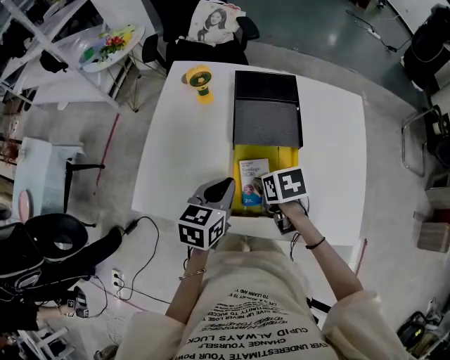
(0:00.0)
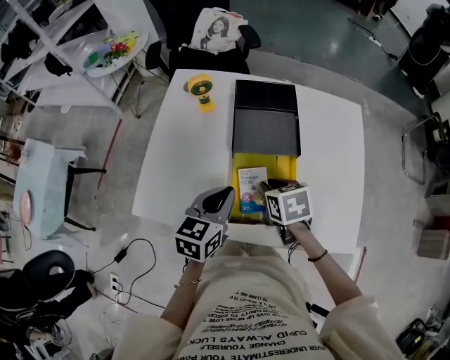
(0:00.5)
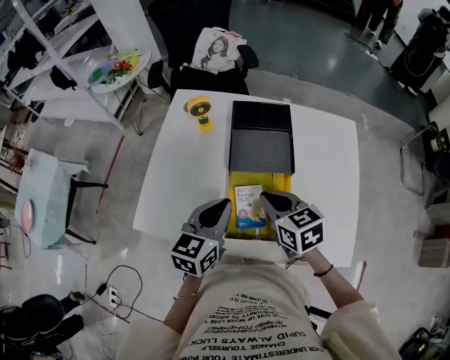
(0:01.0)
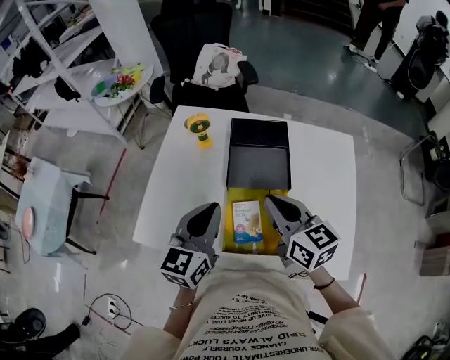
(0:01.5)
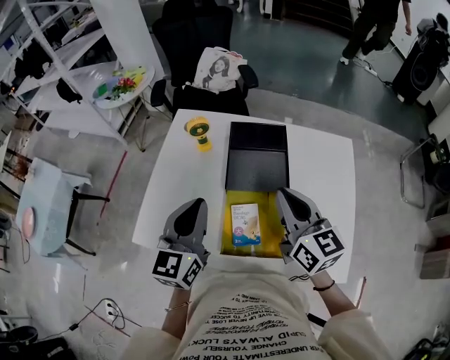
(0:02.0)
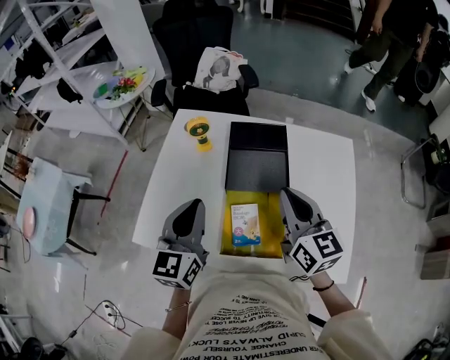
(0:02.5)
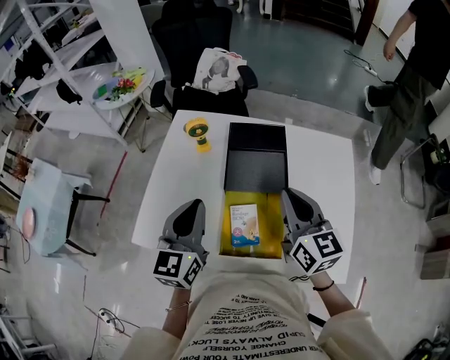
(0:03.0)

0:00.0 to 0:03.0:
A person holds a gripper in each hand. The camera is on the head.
0:00.0 to 0:01.5: The left gripper travels upward by about 10 cm, and swivels some 20 degrees; the right gripper travels upward by approximately 15 cm, angles its fingers upward, by roughly 50 degrees, and closes its fingers.
0:01.5 to 0:03.0: The right gripper ends up roughly 5 cm from where it was.

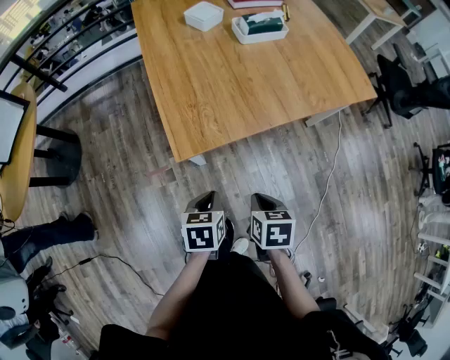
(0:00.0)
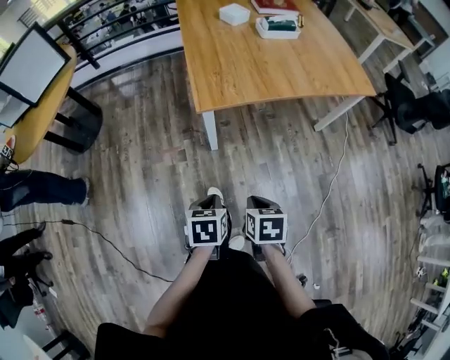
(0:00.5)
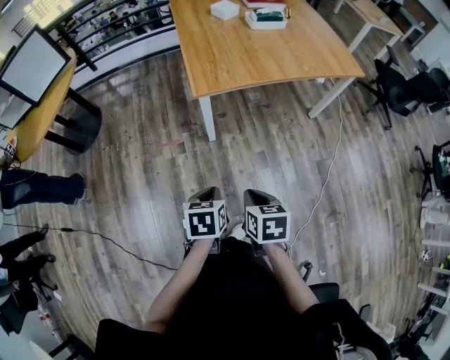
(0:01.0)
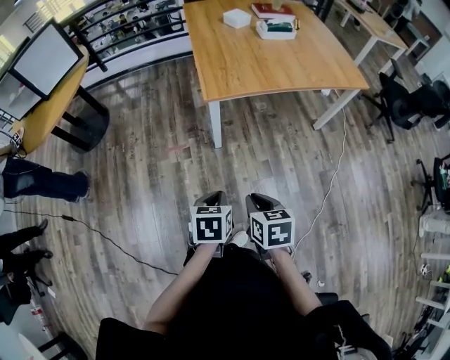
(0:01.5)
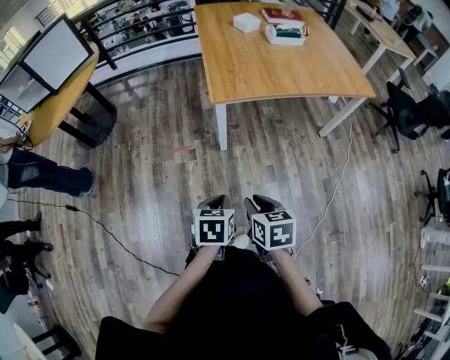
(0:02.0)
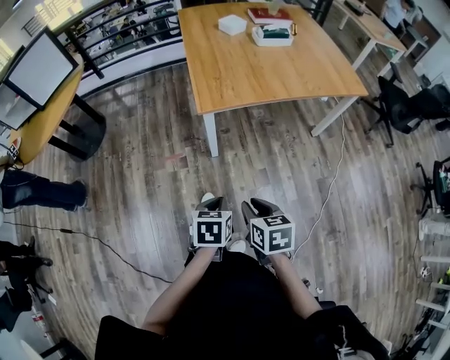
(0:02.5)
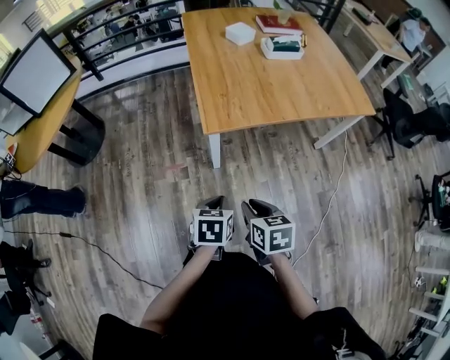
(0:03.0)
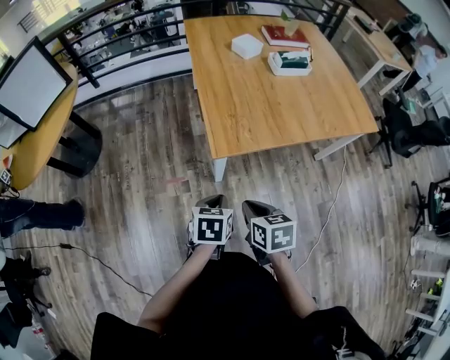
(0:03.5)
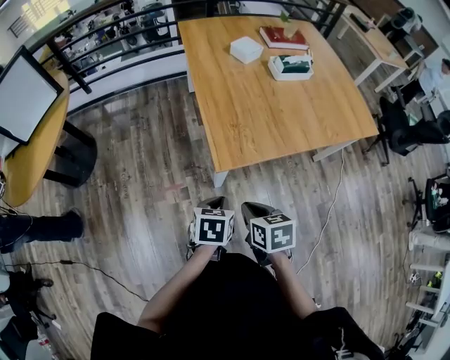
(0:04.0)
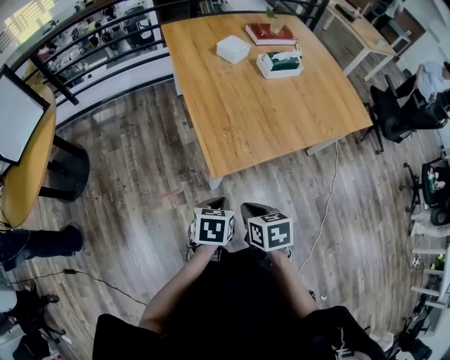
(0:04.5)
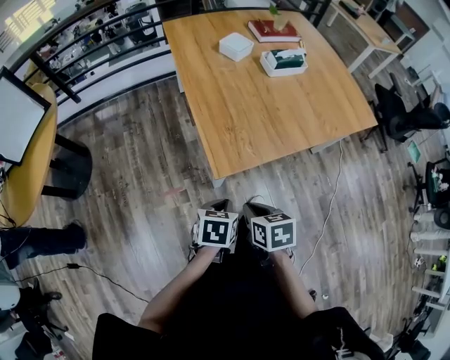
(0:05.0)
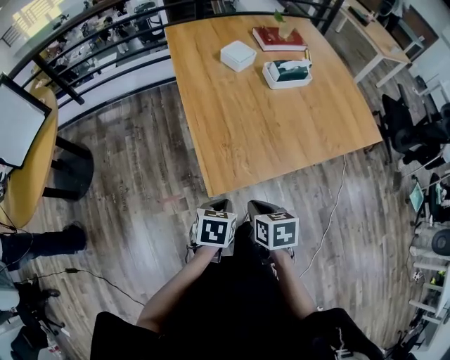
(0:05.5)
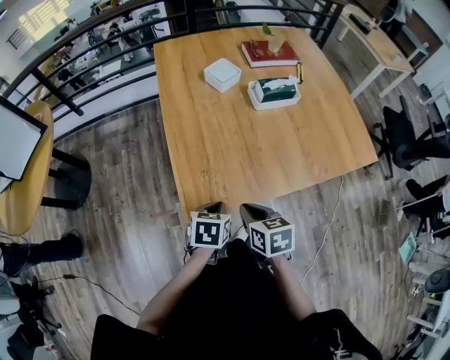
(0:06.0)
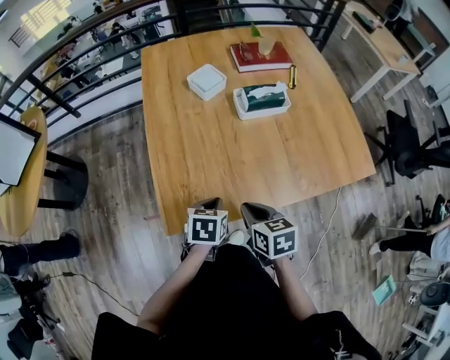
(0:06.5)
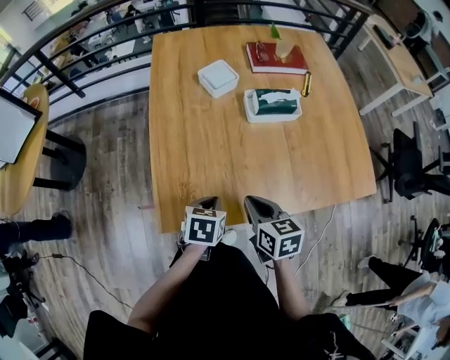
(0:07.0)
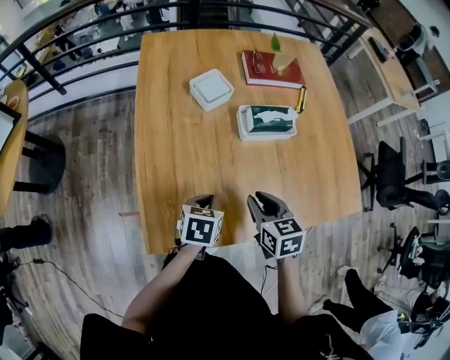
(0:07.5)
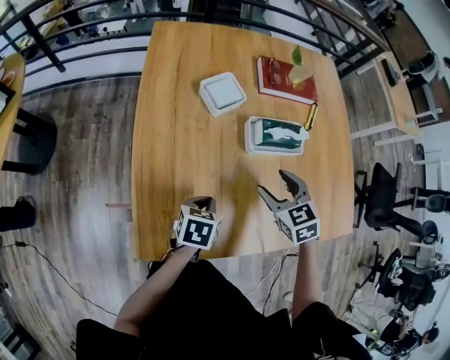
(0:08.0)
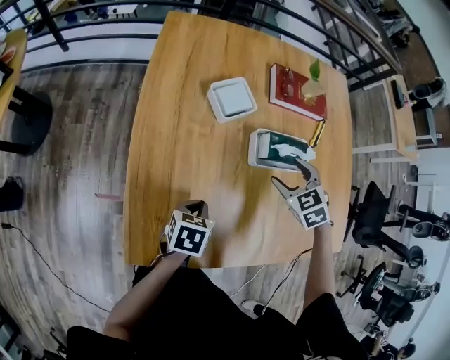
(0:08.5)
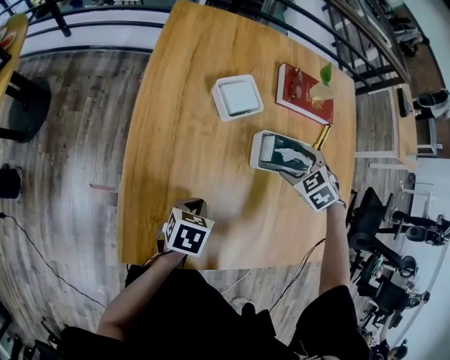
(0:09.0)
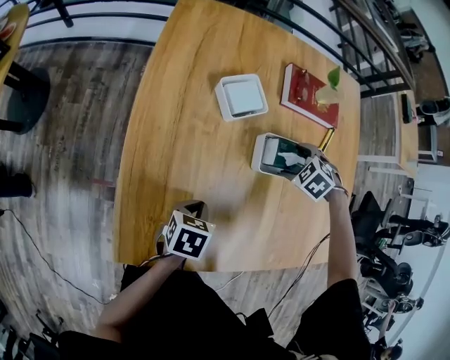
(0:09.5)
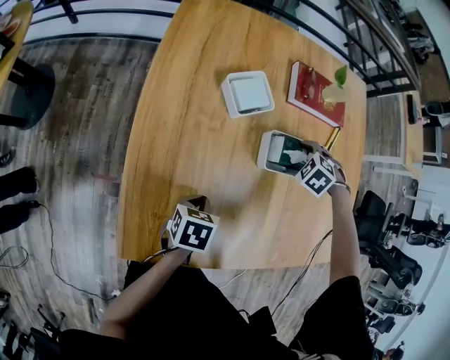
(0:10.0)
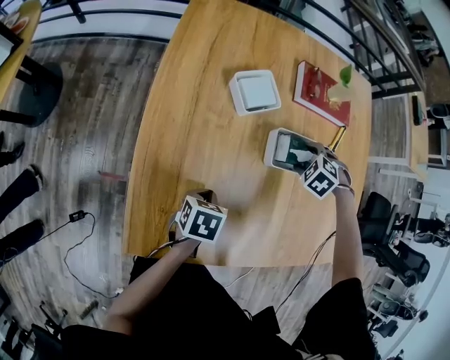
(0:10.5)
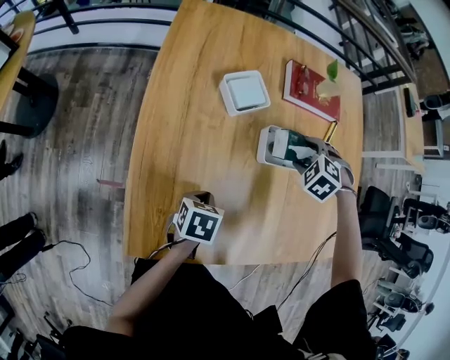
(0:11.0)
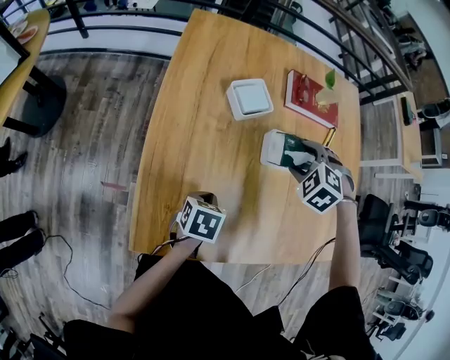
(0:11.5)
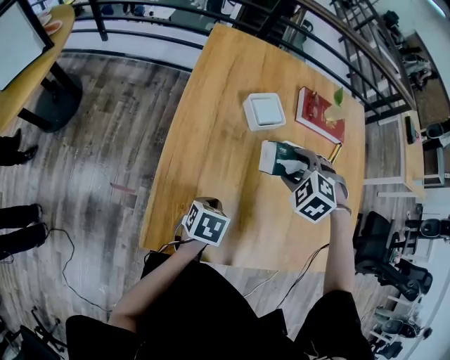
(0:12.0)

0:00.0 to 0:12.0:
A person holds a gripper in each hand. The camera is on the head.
0:00.0 to 0:02.0: The grippers both shift backward by about 30 cm. The right gripper swivels roughly 20 degrees.
0:02.0 to 0:04.0: The grippers both shift forward by about 30 cm.
0:04.0 to 0:06.0: Both grippers move forward and to the right, about 20 cm.
0:06.0 to 0:08.0: The right gripper travels forward and to the right by some 35 cm, twists approximately 40 degrees counterclockwise, seen from behind, and opens up. The left gripper heads forward, covering approximately 20 cm.
0:08.0 to 0:10.0: The left gripper moves some 5 cm. The right gripper moves some 20 cm, and points its fingers about 40 degrees further downward.
0:10.0 to 0:12.0: The left gripper ends up approximately 5 cm from where it was; the right gripper moves approximately 20 cm, and changes its angle by roughly 20 degrees.

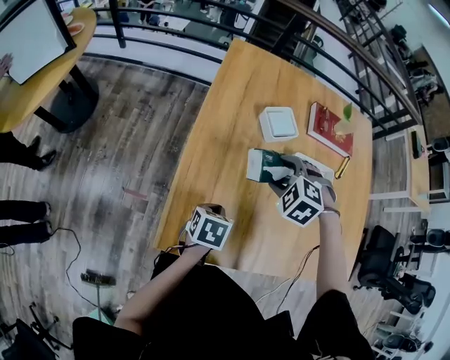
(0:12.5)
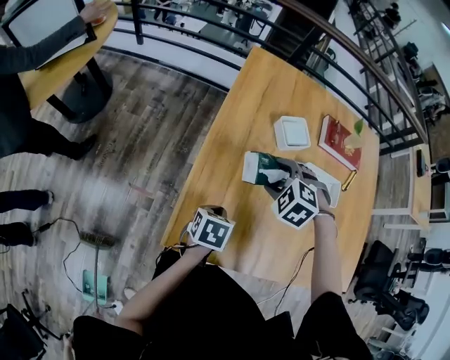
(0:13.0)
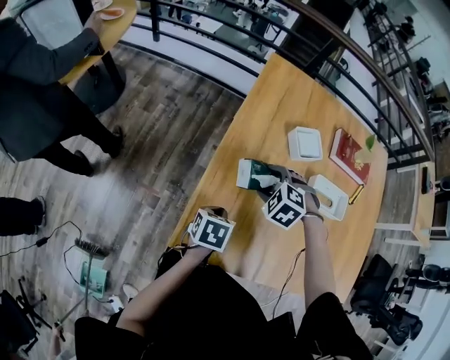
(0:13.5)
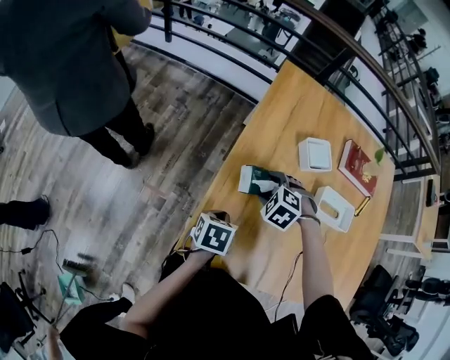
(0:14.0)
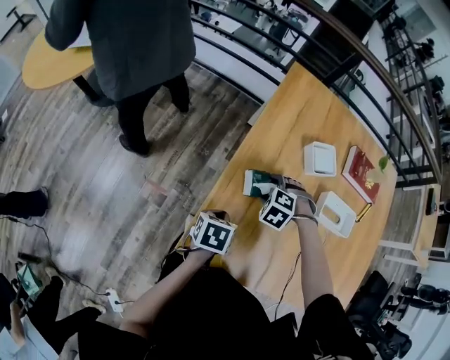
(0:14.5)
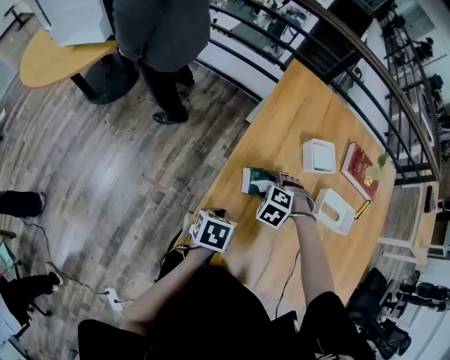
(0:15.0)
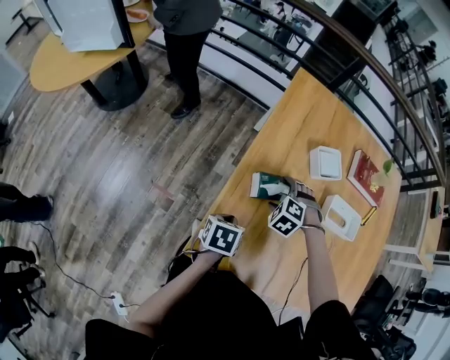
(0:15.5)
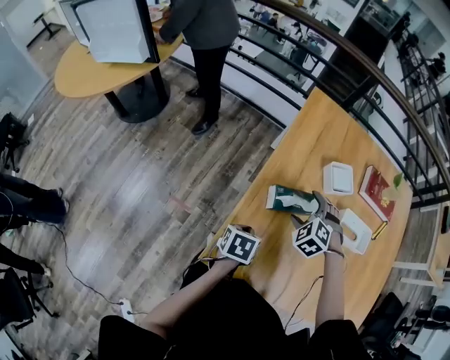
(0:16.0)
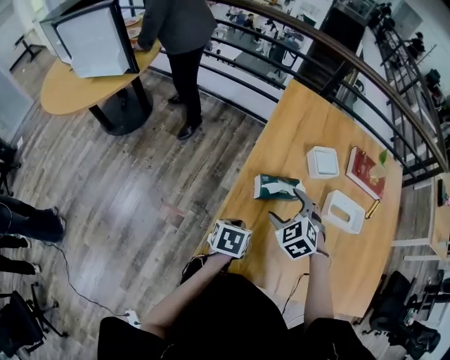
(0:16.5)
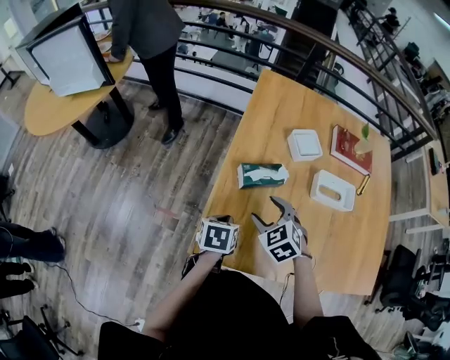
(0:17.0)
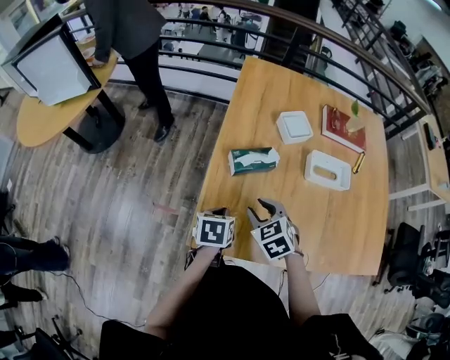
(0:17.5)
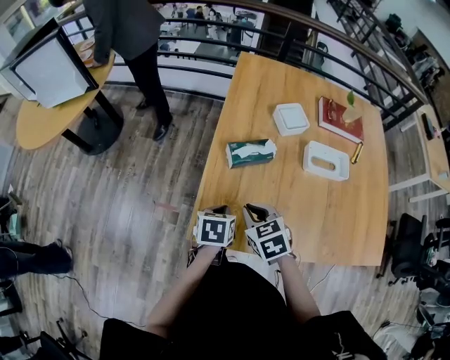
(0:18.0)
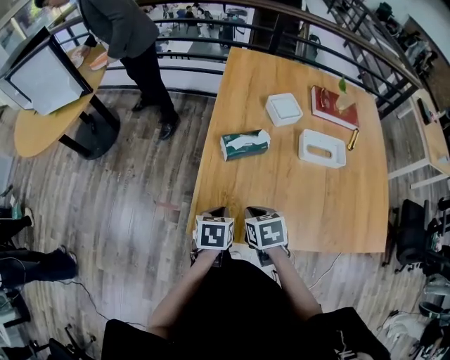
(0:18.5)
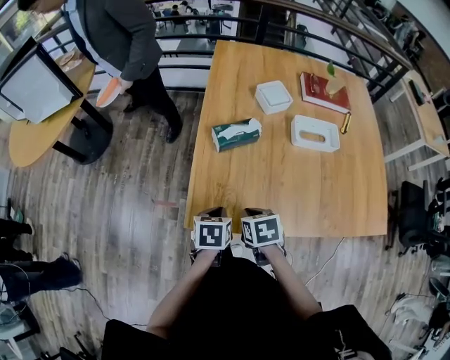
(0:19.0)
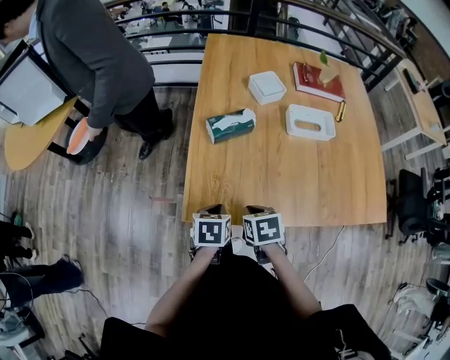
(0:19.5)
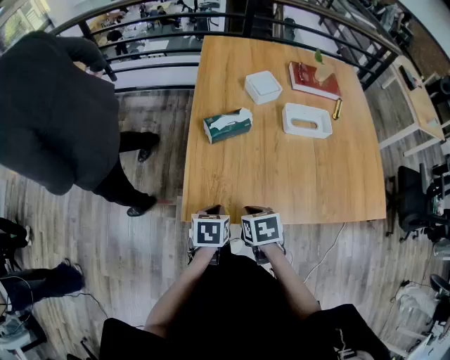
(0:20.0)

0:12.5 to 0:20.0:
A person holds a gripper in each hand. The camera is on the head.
0:12.5 to 0:14.5: The left gripper changes place by some 10 cm, while the right gripper shifts approximately 15 cm downward.
0:14.5 to 0:16.5: The right gripper travels upward by approximately 10 cm, and rotates approximately 40 degrees.
0:16.5 to 0:18.0: The right gripper moves backward, some 15 cm, changes its angle by approximately 40 degrees, and closes, while the left gripper shifts by approximately 5 cm.
0:18.0 to 0:20.0: The right gripper travels backward and downward by approximately 10 cm, and rotates some 30 degrees; the left gripper is displaced backward by about 10 cm.

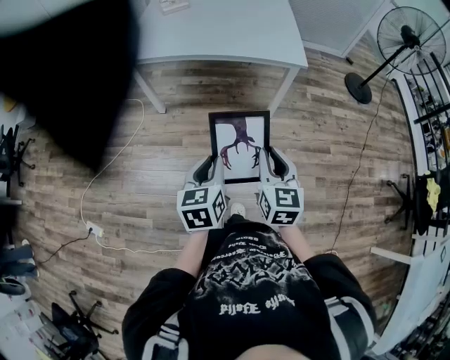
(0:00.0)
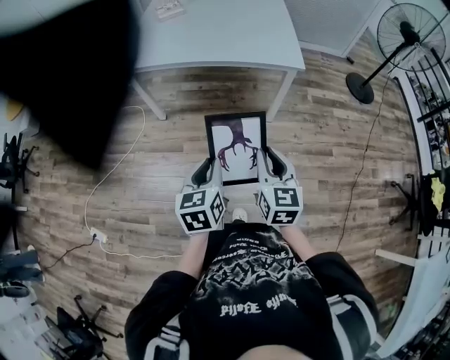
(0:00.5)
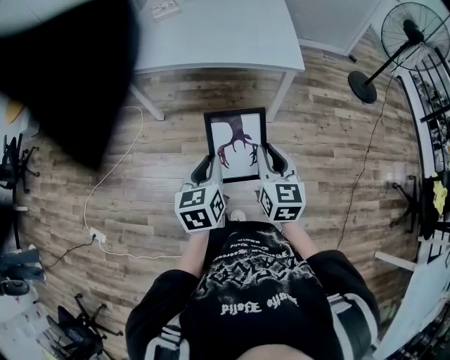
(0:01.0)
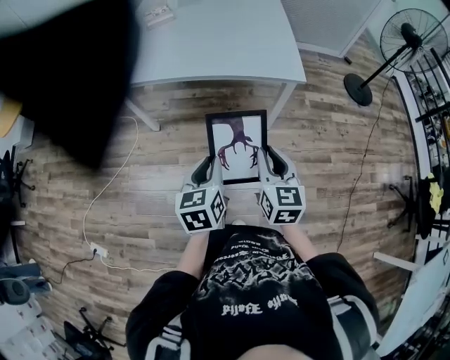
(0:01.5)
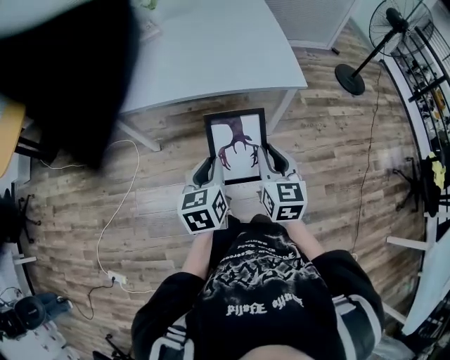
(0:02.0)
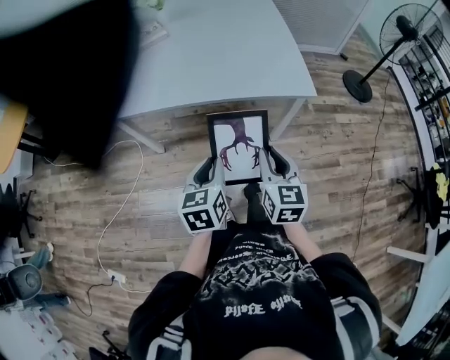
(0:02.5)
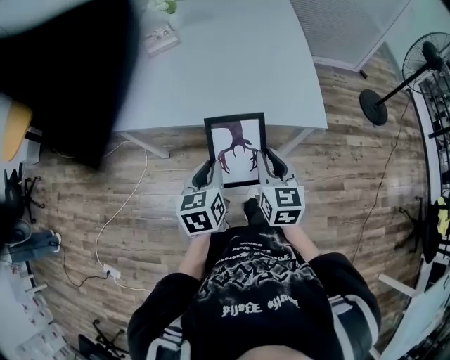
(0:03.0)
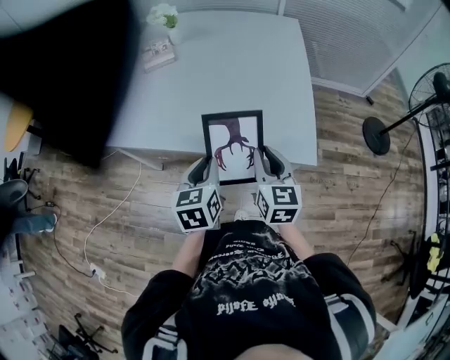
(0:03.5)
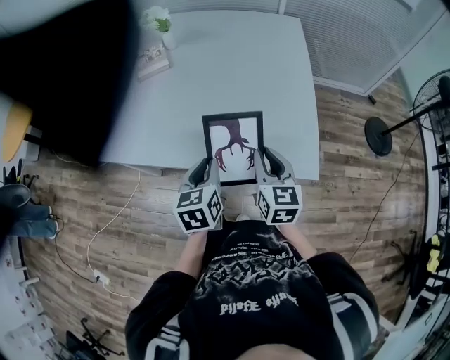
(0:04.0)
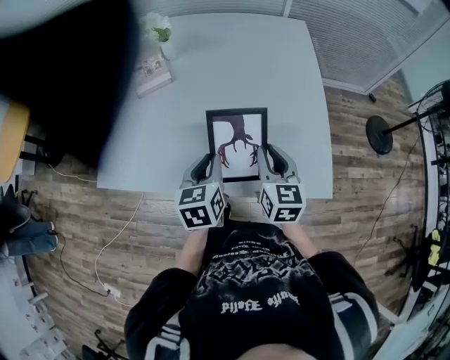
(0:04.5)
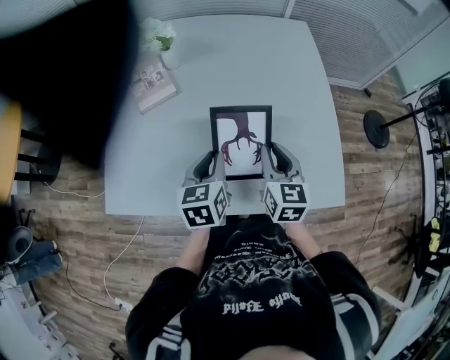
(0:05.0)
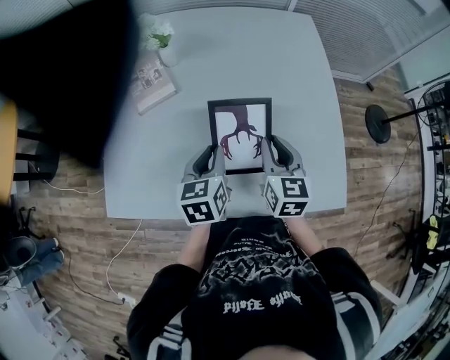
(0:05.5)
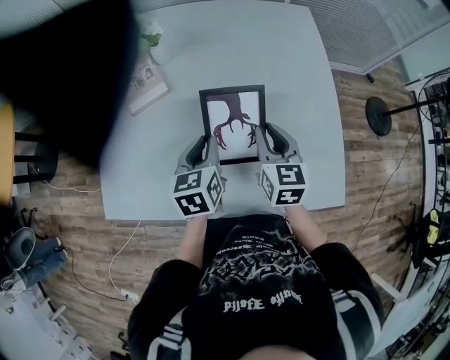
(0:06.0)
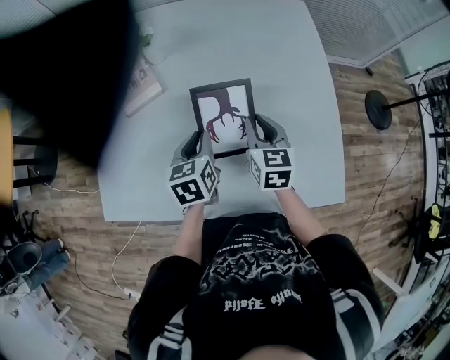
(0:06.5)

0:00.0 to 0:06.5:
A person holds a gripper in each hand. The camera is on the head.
0:00.0 to 0:02.0: Both grippers travel together forward, some 20 cm.
0:02.0 to 0:04.5: Both grippers are carried forward, roughly 40 cm.
0:04.5 to 0:06.5: Both grippers travel together forward, approximately 15 cm.
